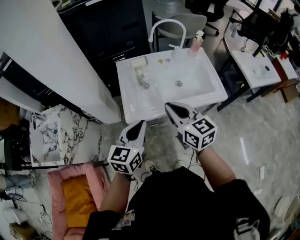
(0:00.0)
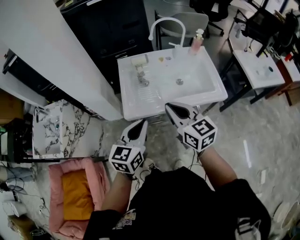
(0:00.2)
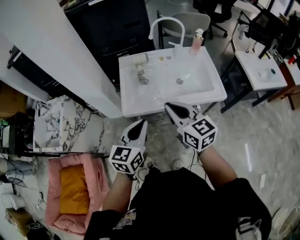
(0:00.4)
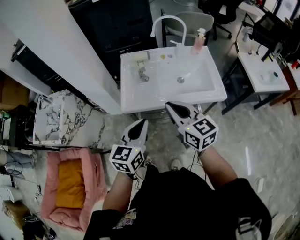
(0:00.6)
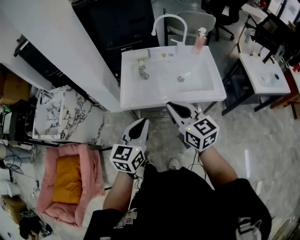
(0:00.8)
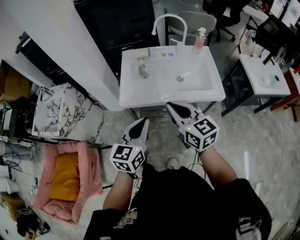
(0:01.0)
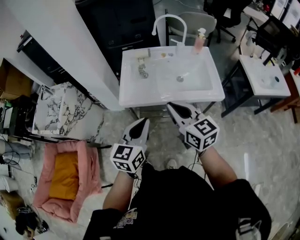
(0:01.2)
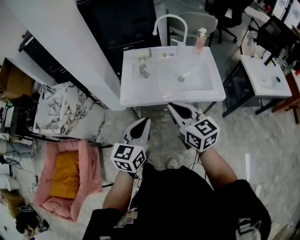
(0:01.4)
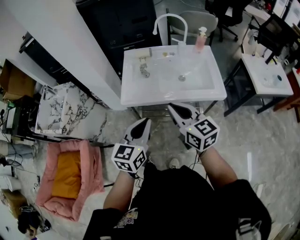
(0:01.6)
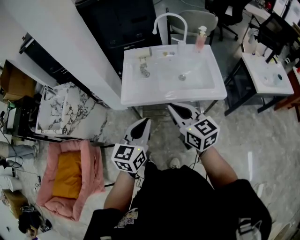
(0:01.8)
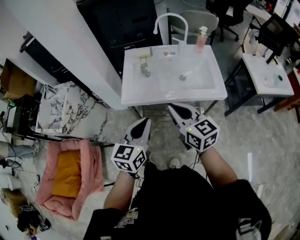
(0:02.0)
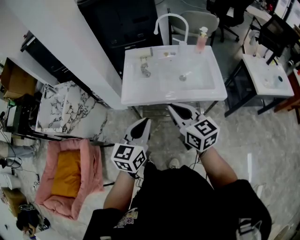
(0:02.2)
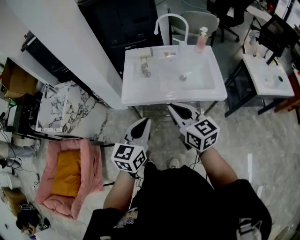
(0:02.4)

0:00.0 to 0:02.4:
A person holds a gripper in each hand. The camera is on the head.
0:00.0 to 0:01.2: Both grippers move backward and to the right, roughly 15 cm.
0:01.2 to 0:02.4: Both grippers stay put.

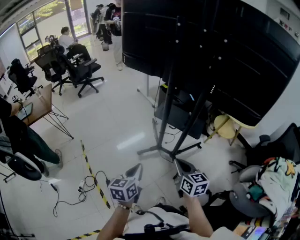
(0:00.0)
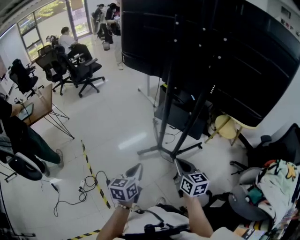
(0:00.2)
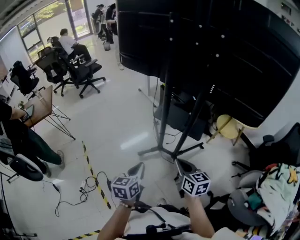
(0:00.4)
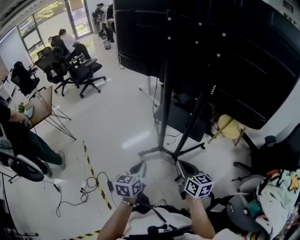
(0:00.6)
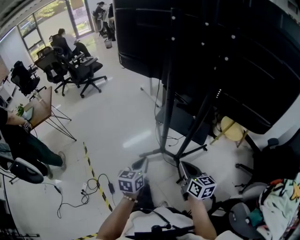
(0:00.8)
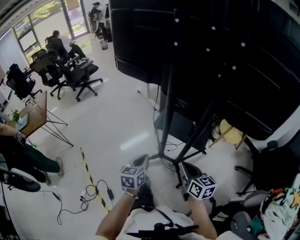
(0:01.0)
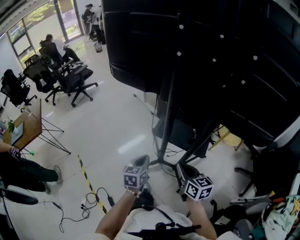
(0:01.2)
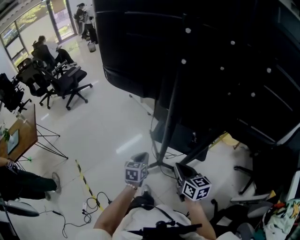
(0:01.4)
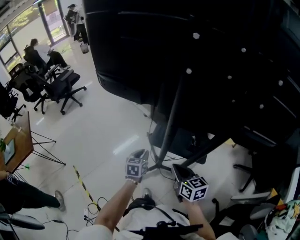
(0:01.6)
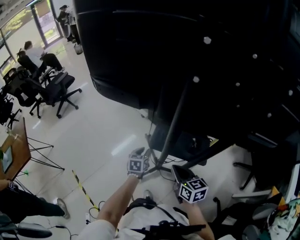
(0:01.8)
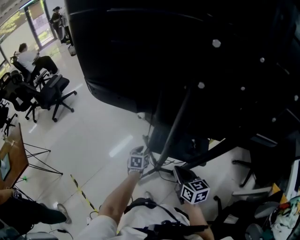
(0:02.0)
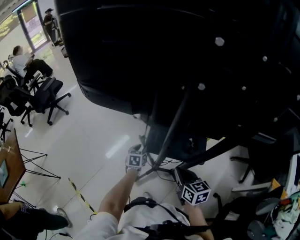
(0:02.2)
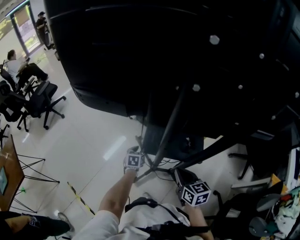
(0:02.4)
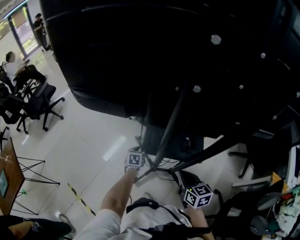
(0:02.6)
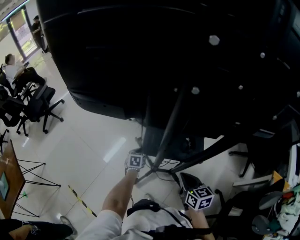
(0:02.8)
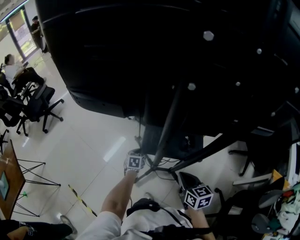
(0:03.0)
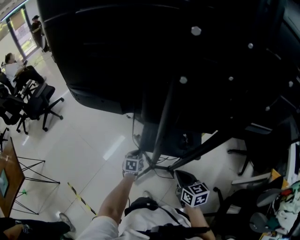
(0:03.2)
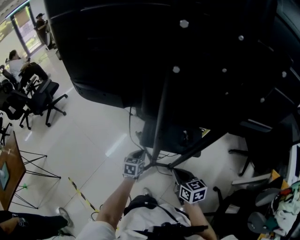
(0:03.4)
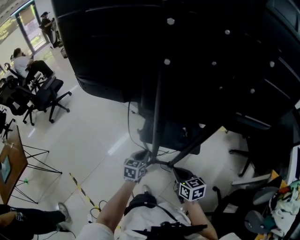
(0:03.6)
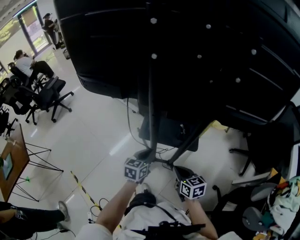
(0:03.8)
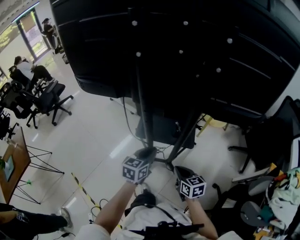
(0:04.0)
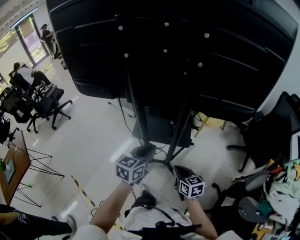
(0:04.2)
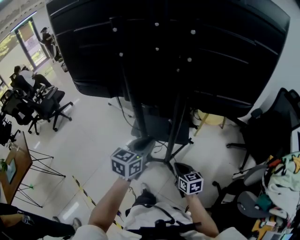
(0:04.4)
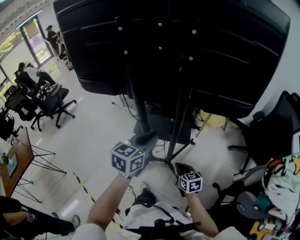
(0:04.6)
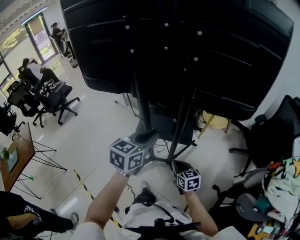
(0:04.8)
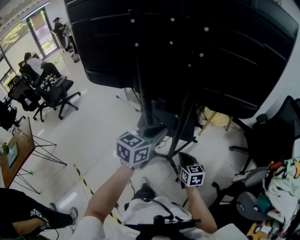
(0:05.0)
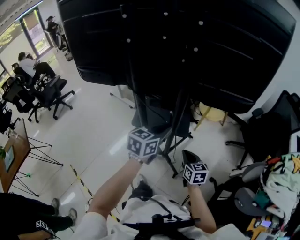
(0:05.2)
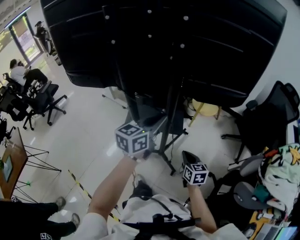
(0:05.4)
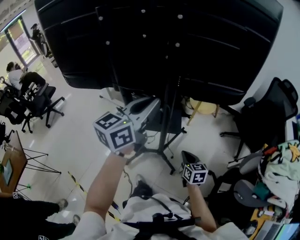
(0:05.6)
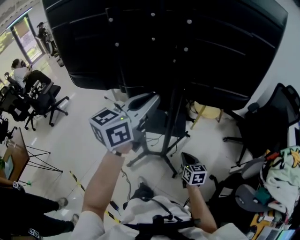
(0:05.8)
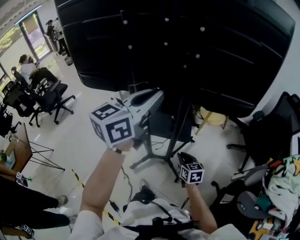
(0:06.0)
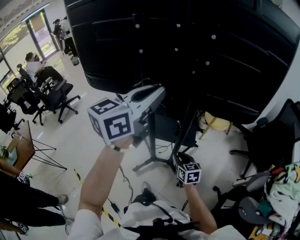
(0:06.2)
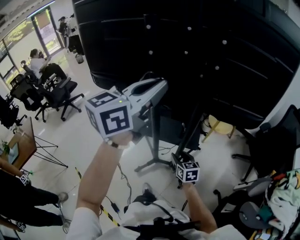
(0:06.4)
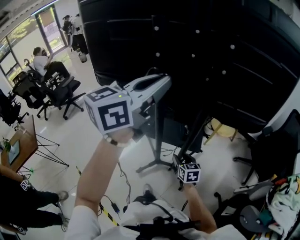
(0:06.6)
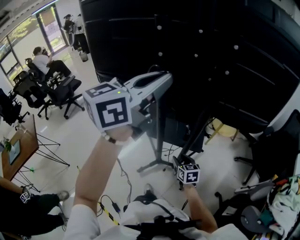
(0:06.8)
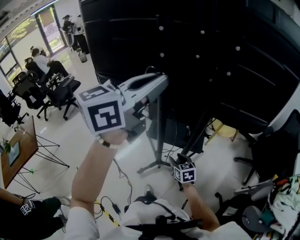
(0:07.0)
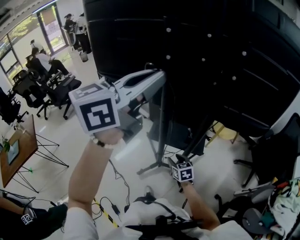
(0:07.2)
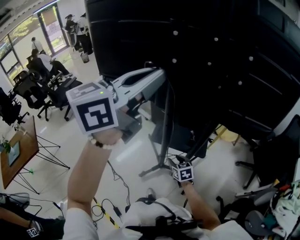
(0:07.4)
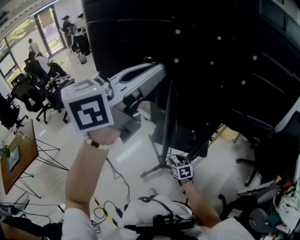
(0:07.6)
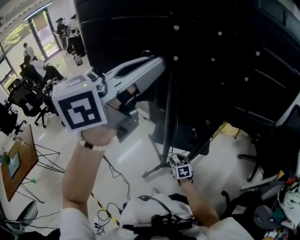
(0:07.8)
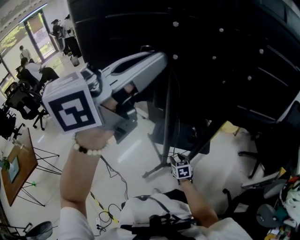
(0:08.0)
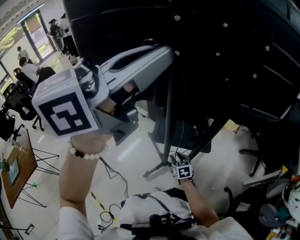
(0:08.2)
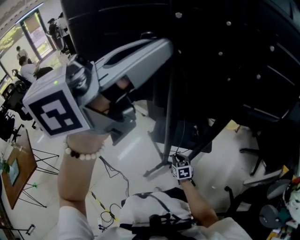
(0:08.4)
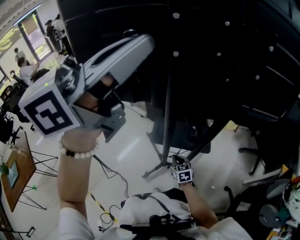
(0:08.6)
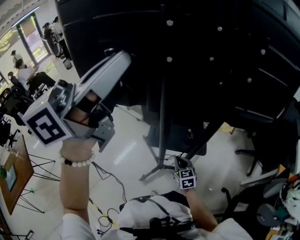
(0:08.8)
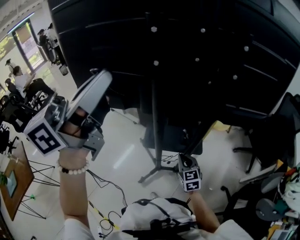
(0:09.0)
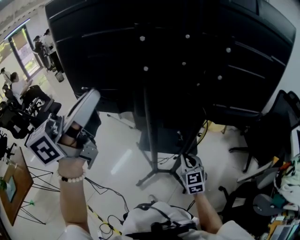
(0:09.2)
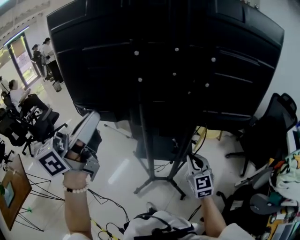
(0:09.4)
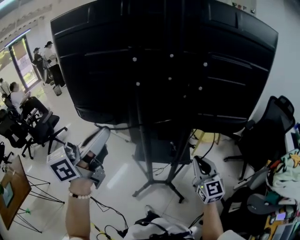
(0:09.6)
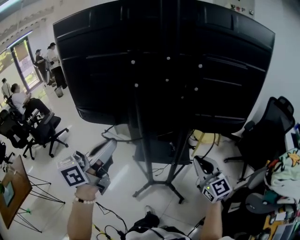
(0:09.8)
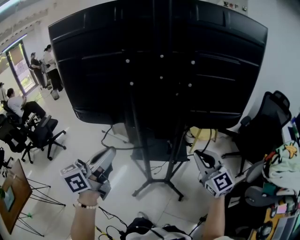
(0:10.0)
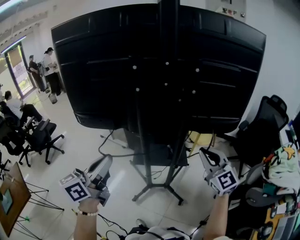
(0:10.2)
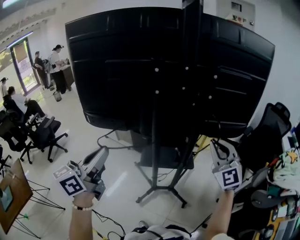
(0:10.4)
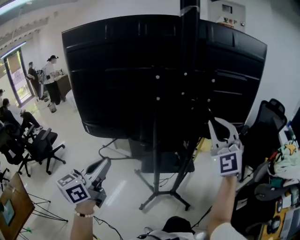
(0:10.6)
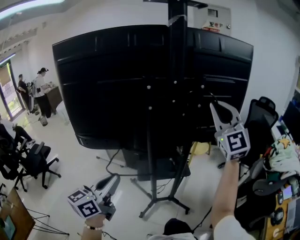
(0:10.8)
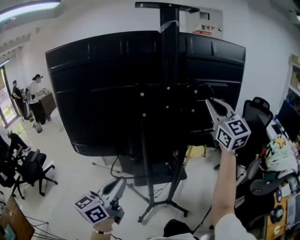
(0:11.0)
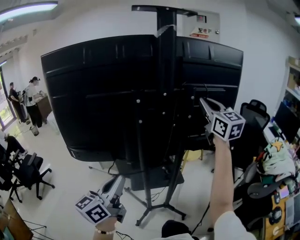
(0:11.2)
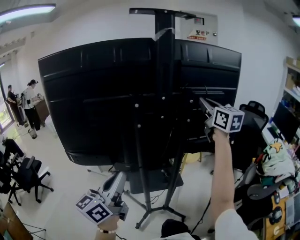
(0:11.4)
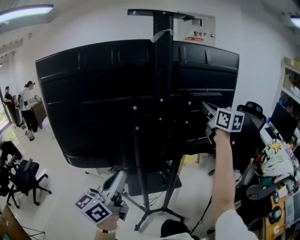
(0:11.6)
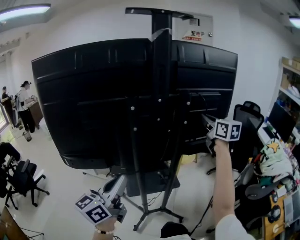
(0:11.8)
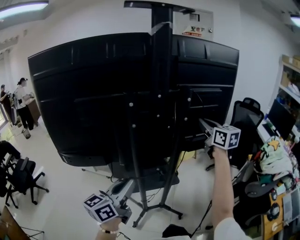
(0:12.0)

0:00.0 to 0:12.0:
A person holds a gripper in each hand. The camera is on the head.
0:00.0 to 0:01.6: Both grippers travel together forward, approximately 40 cm. The left gripper swivels approximately 20 degrees.
0:01.6 to 0:03.0: The right gripper ends up roughly 5 cm from where it was. Meanwhile the left gripper is displaced downward and forward by approximately 20 cm.
0:03.0 to 0:04.4: The left gripper goes approximately 50 cm upward, backward and to the right, and tilts its fingers about 30 degrees upward. The right gripper shifts about 20 cm backward and to the right.
0:04.4 to 0:06.0: The left gripper moves up and down over about 25 cm, changing direction 2 times, and swivels about 20 degrees, while the right gripper travels to the right and back again, roughly 10 cm each way.
0:06.0 to 0:07.6: The left gripper is displaced to the left and upward by some 20 cm. The right gripper goes some 20 cm to the left and downward, and opens.
0:07.6 to 0:09.0: The right gripper goes some 10 cm upward and to the right, turns by about 20 degrees, and closes; the left gripper shifts about 5 cm to the left.
0:09.0 to 0:10.4: The right gripper goes approximately 35 cm upward, and swivels some 40 degrees. The left gripper goes about 20 cm backward, downward and to the left.
0:10.4 to 0:12.0: The right gripper travels forward and upward by about 20 cm, and twists roughly 40 degrees clockwise, seen from behind, while the left gripper shifts some 15 cm forward, to the right and downward, and swivels some 20 degrees.

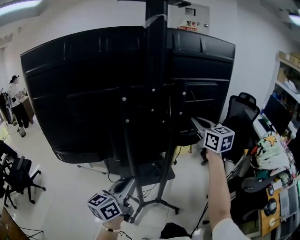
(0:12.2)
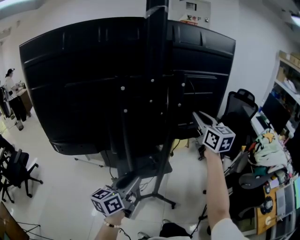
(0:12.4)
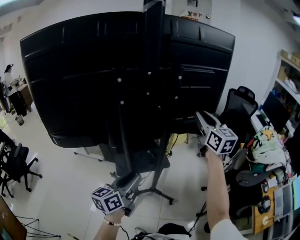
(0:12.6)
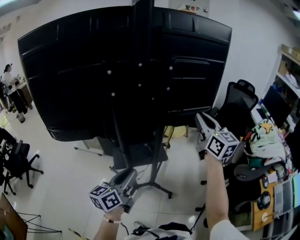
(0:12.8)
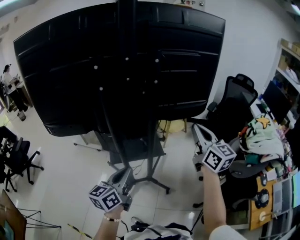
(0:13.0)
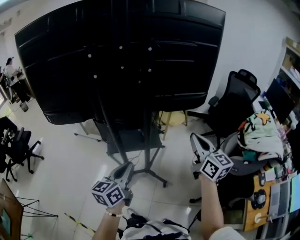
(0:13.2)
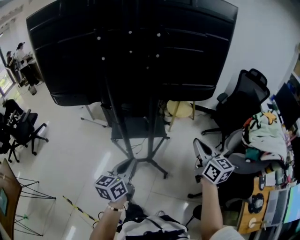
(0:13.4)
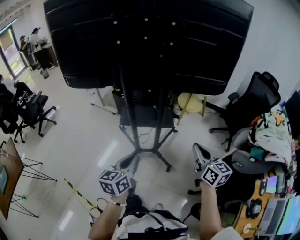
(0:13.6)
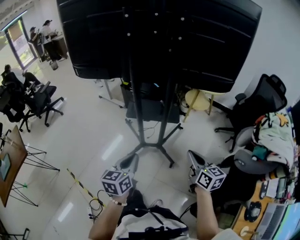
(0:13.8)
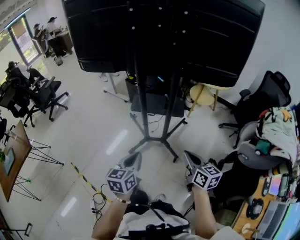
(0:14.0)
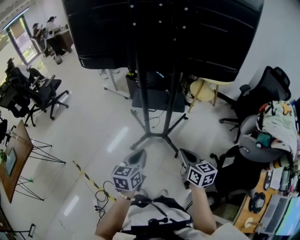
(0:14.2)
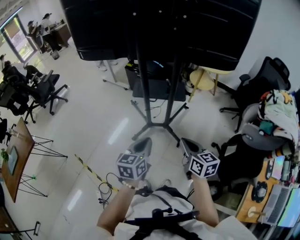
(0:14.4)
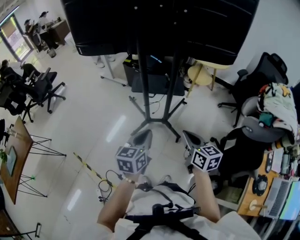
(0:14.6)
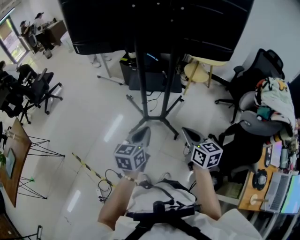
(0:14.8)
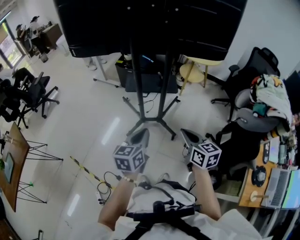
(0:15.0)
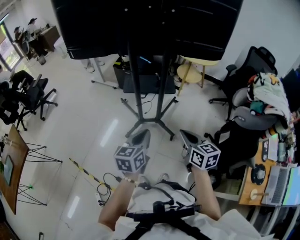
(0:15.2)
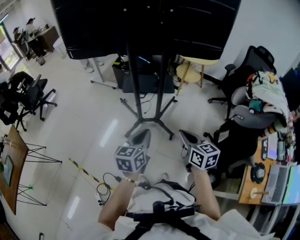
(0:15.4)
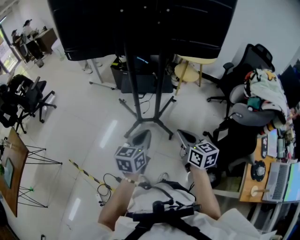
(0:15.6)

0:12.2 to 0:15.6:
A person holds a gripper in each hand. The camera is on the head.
0:12.2 to 0:13.8: The left gripper shifts by about 30 cm, turns by some 40 degrees, and opens and closes again. Meanwhile the right gripper changes place by roughly 50 cm, rotates some 30 degrees, and opens, then closes again.
0:13.8 to 0:15.6: The left gripper heads backward, covering some 10 cm, while the right gripper shifts roughly 15 cm backward and to the left.

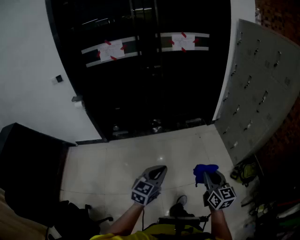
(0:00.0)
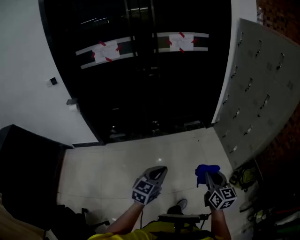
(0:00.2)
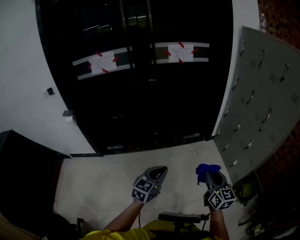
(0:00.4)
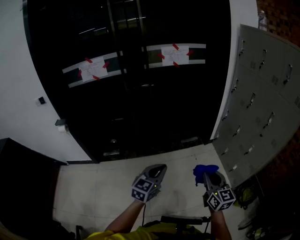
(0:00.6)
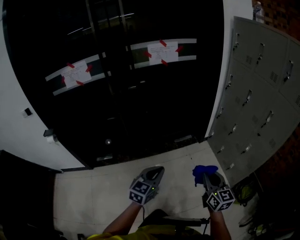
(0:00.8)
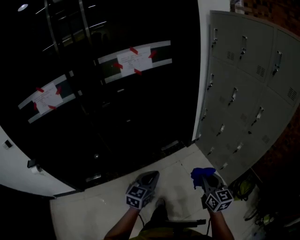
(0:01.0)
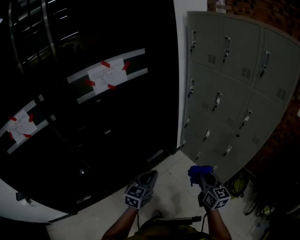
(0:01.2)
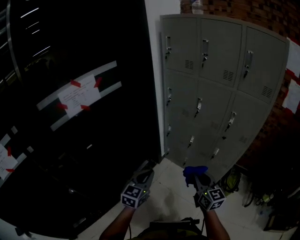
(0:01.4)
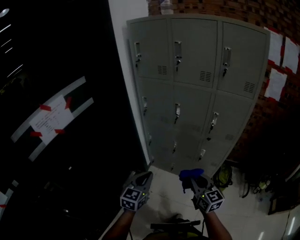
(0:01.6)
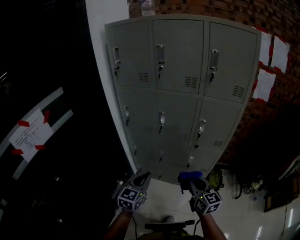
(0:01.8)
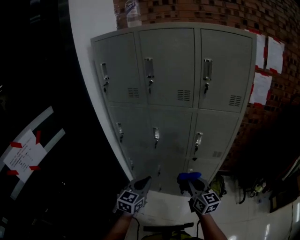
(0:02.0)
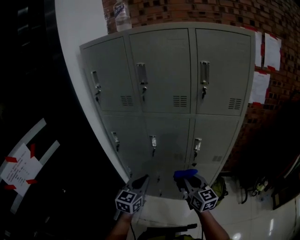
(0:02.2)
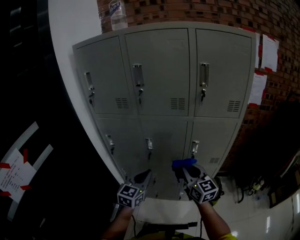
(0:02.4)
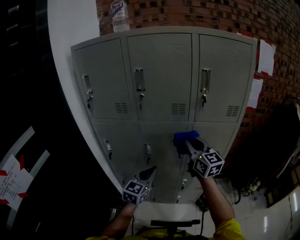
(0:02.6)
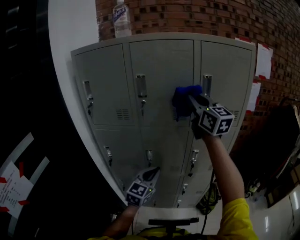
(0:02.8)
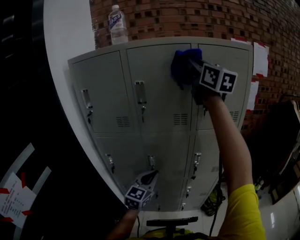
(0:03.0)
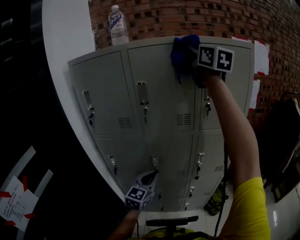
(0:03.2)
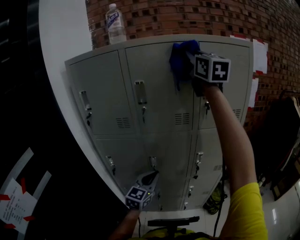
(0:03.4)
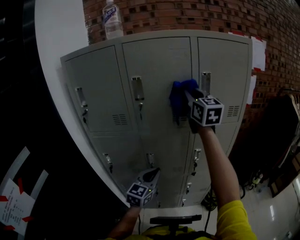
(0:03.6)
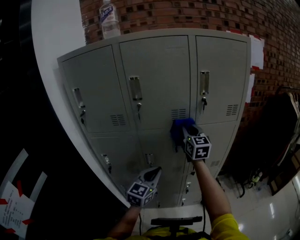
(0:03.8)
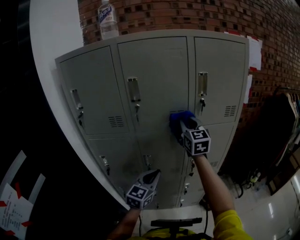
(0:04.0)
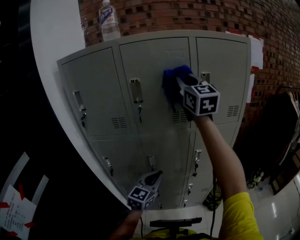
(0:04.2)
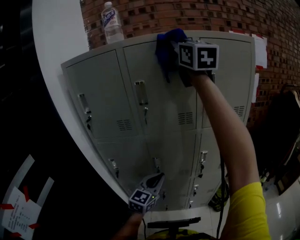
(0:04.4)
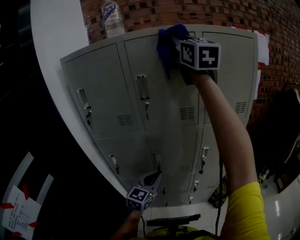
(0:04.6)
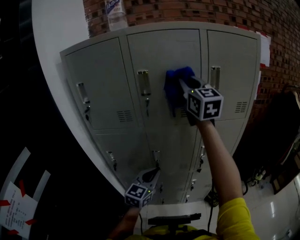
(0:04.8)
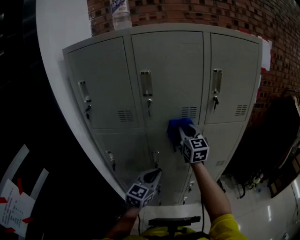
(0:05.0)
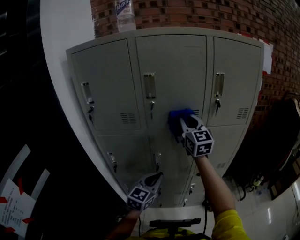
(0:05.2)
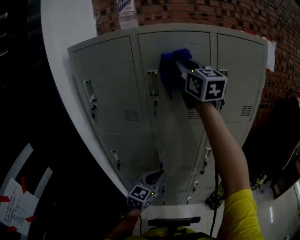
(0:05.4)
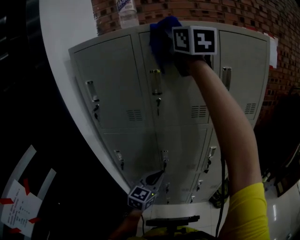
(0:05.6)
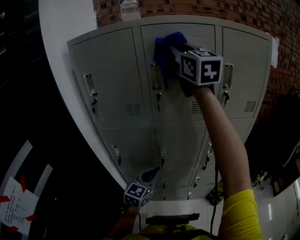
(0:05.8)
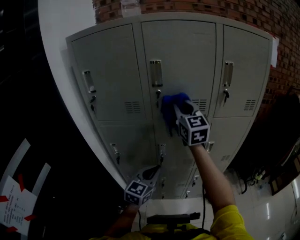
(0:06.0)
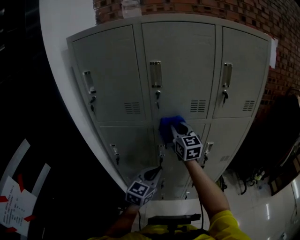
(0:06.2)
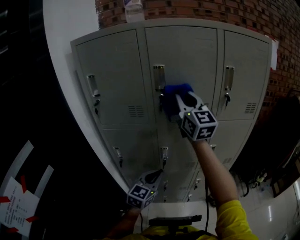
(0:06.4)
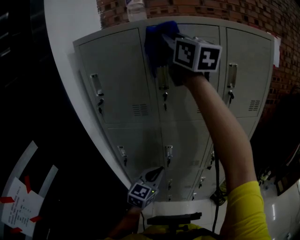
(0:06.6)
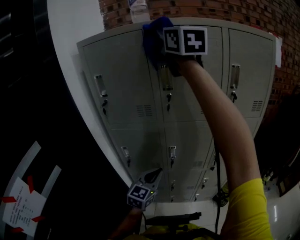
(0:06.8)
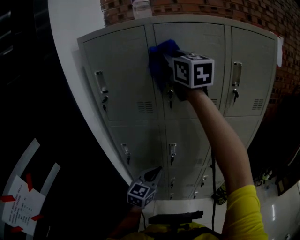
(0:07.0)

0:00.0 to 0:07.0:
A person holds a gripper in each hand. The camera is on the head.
0:00.0 to 0:01.4: The pair of grippers is taken about 70 cm. The left gripper swivels approximately 40 degrees, while the right gripper rotates roughly 40 degrees.
0:01.4 to 0:02.8: The pair of grippers is taken approximately 50 cm. The right gripper changes its angle by roughly 40 degrees; the left gripper rotates roughly 40 degrees.
0:02.8 to 0:04.2: The right gripper goes up and down, some 40 cm each way, reversing 2 times.
0:04.2 to 0:05.6: The left gripper travels to the left by roughly 5 cm. The right gripper moves up and down over about 40 cm, changing direction 2 times.
0:05.6 to 0:07.0: The left gripper shifts approximately 5 cm to the left; the right gripper swings up and down, approximately 40 cm each way, with 2 reversals.
